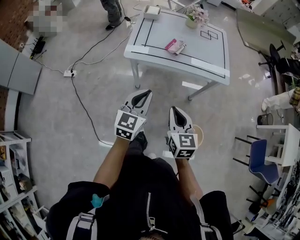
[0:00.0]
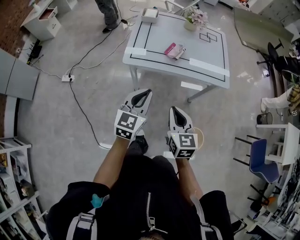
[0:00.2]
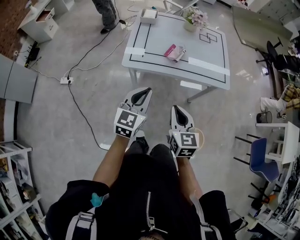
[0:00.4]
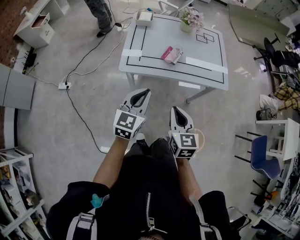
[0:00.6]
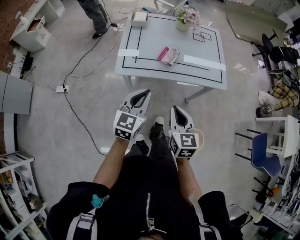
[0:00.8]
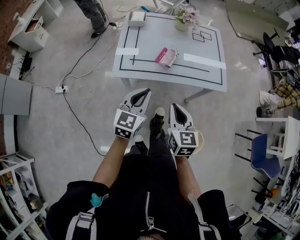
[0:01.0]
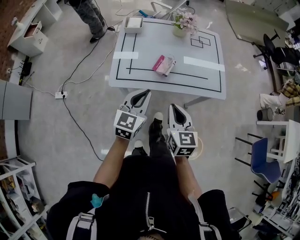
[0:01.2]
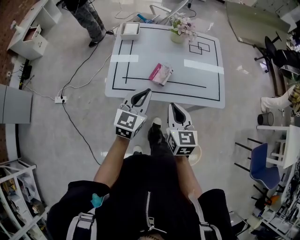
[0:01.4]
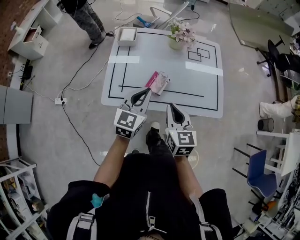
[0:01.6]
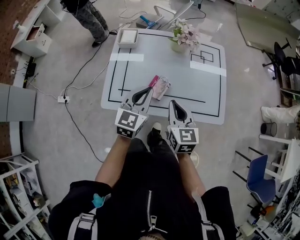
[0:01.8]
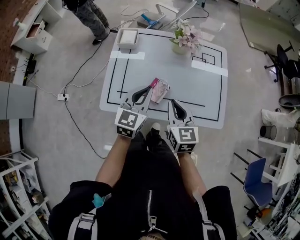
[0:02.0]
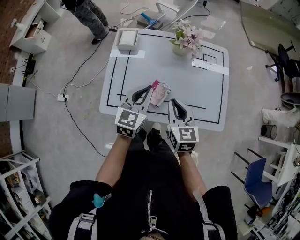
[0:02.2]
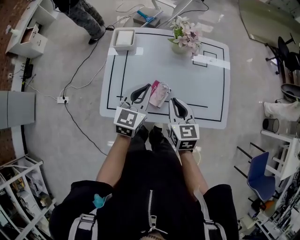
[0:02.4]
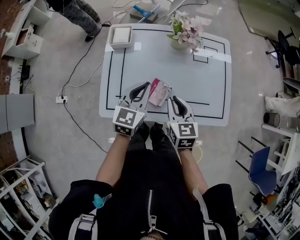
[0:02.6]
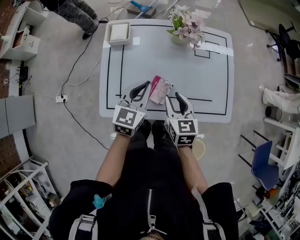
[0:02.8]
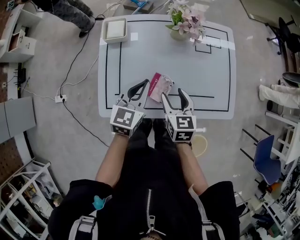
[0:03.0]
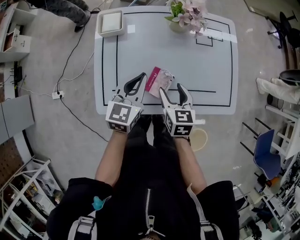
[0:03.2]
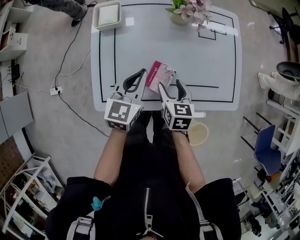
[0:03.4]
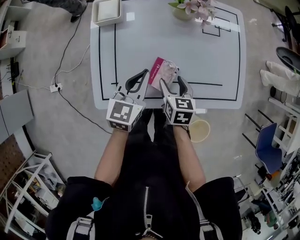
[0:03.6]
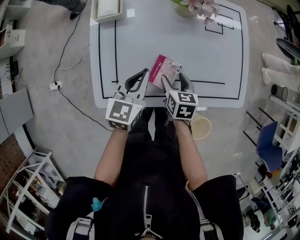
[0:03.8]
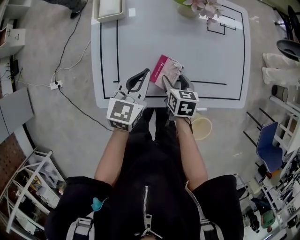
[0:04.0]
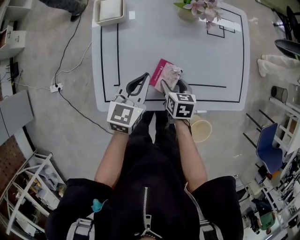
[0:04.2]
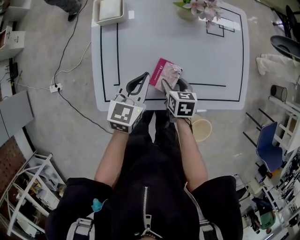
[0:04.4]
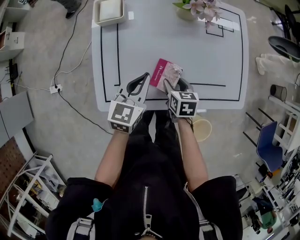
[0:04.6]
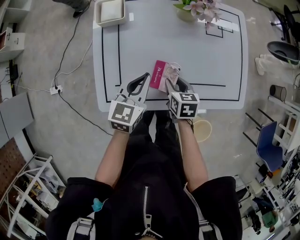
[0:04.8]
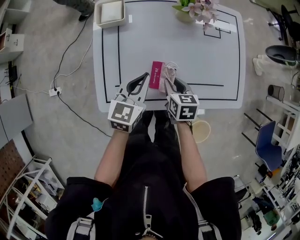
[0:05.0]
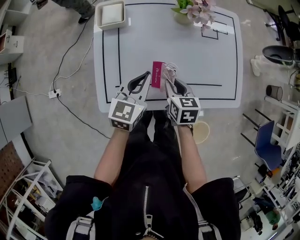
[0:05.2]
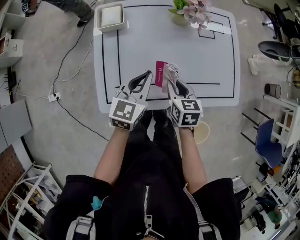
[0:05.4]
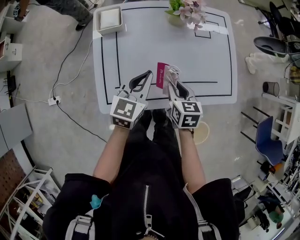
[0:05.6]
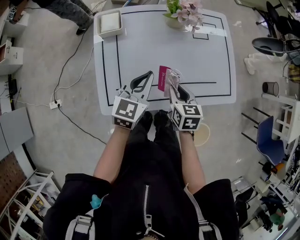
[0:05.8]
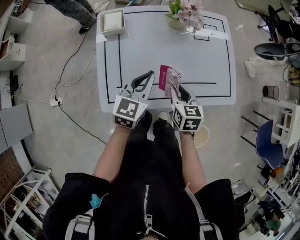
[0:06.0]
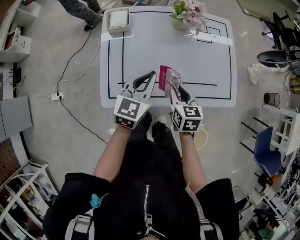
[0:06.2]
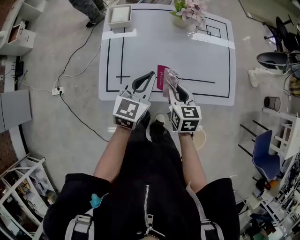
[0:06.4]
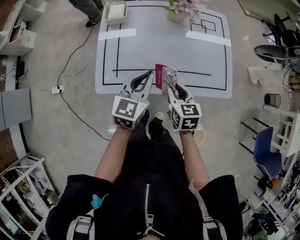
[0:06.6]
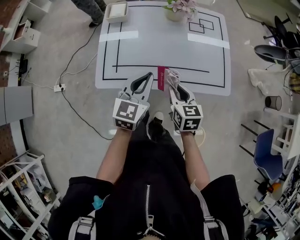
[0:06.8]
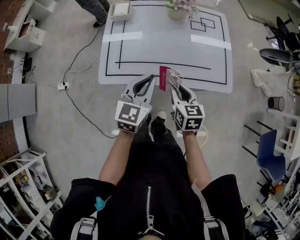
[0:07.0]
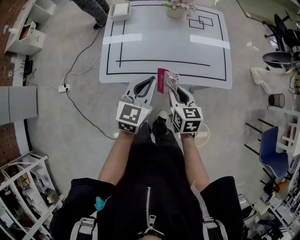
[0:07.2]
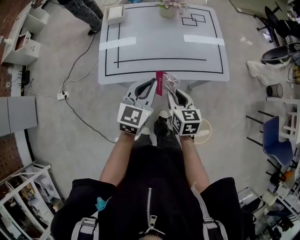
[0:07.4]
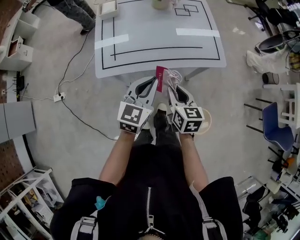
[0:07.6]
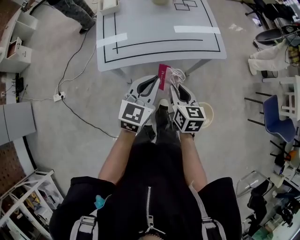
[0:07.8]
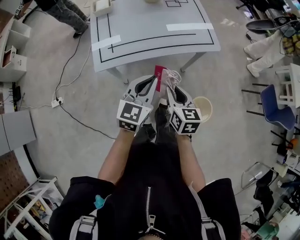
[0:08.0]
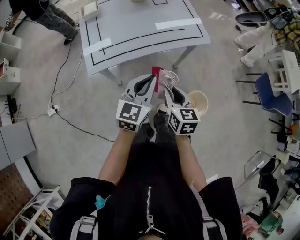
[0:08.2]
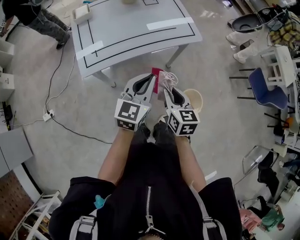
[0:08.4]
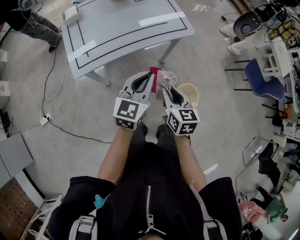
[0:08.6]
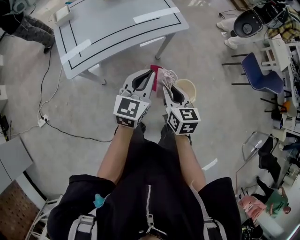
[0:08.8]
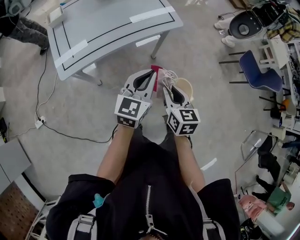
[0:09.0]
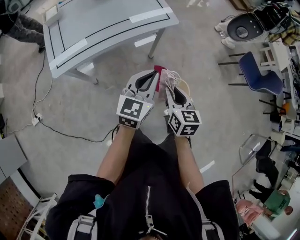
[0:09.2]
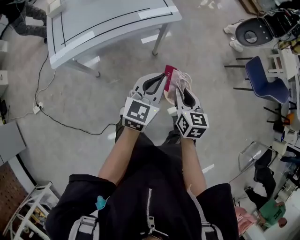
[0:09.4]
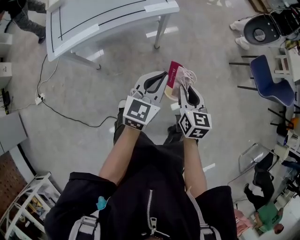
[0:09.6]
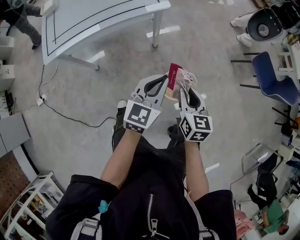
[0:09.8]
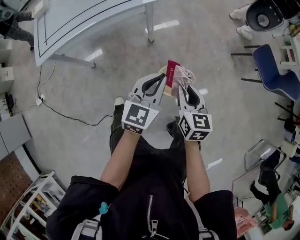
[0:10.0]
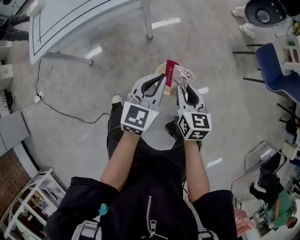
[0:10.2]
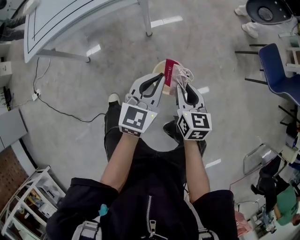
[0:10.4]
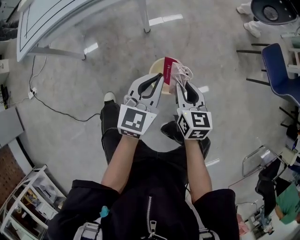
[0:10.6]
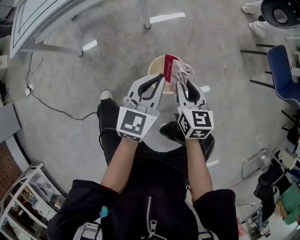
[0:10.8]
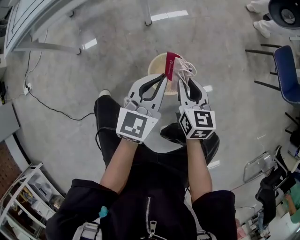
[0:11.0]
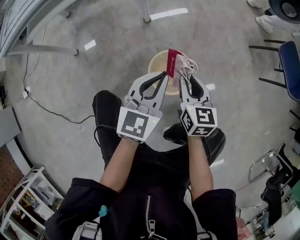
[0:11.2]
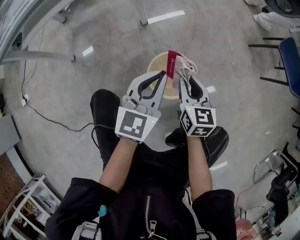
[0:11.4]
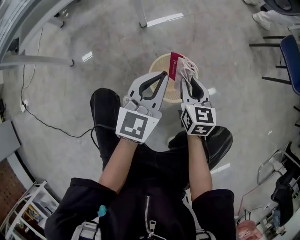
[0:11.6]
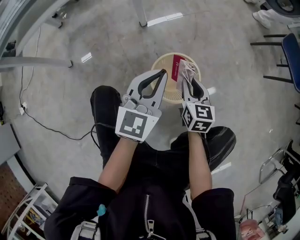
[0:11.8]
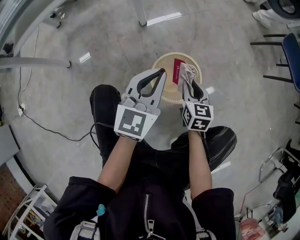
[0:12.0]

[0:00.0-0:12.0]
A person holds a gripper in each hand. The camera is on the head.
0.0 to 1.6 s: The two grippers go about 35 cm forward.
1.6 to 3.0 s: Both grippers move forward and downward, some 15 cm. The right gripper opens its fingers.
3.0 to 4.4 s: The left gripper heads downward, covering some 10 cm; the right gripper heads downward, covering about 15 cm, and rotates about 20 degrees.
4.4 to 6.0 s: The right gripper goes approximately 10 cm upward, and closes its fingers. The left gripper travels upward by roughly 5 cm.
6.0 to 7.6 s: Both grippers travel together backward, roughly 25 cm.
7.6 to 9.0 s: Both grippers travel together to the right and backward, roughly 20 cm. The left gripper rotates about 20 degrees, while the right gripper swivels roughly 20 degrees.
9.0 to 10.4 s: Both grippers travel together to the right and downward, approximately 35 cm.
10.4 to 12.0 s: Both grippers travel together downward, approximately 35 cm.

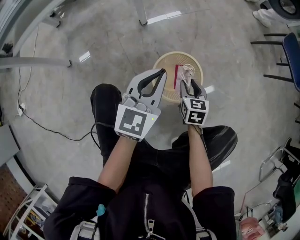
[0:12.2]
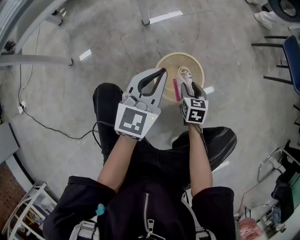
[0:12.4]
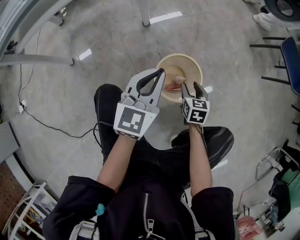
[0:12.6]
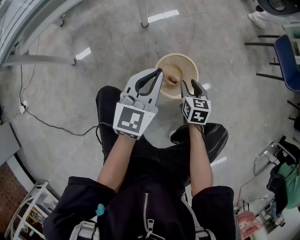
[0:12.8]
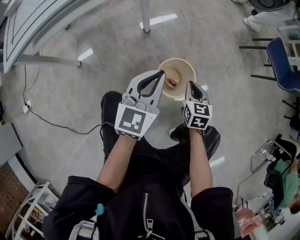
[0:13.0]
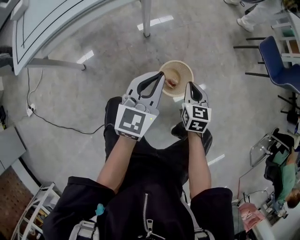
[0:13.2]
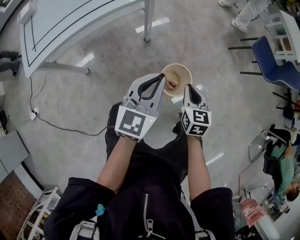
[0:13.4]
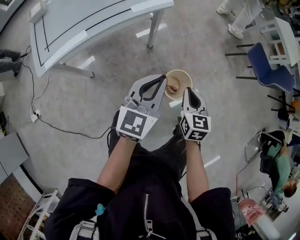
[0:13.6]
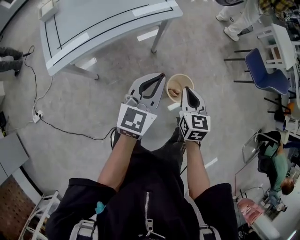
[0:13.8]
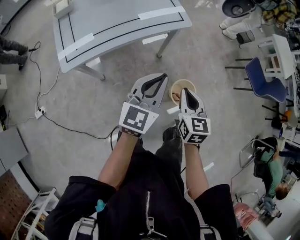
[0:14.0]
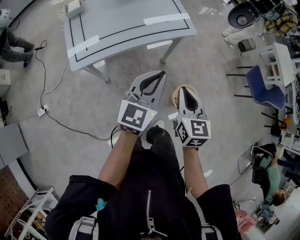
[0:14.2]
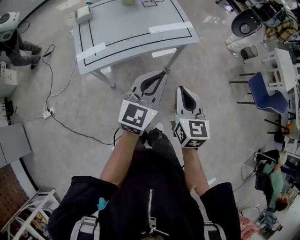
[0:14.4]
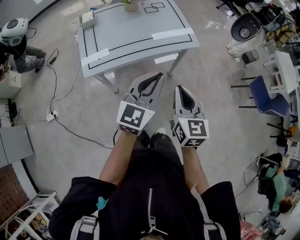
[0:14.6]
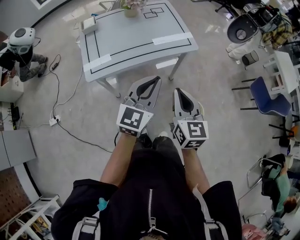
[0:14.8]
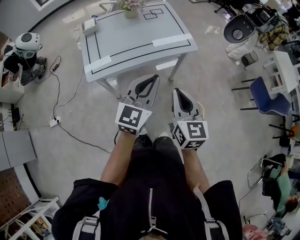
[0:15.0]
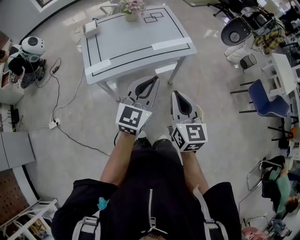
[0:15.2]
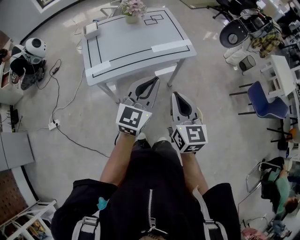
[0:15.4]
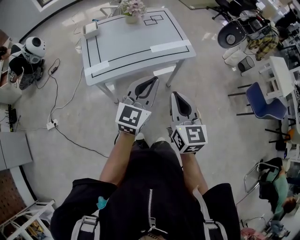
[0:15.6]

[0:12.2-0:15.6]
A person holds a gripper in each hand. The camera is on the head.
12.2 to 13.8 s: The two grippers go roughly 50 cm upward and to the left. The right gripper closes.
13.8 to 15.6 s: The left gripper goes about 20 cm to the left and upward; the right gripper heads upward and to the left, covering about 30 cm, and swivels about 30 degrees.

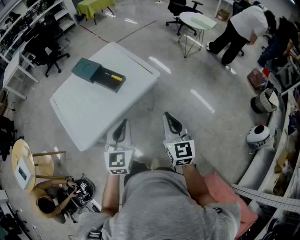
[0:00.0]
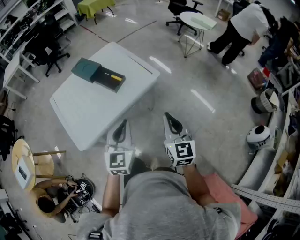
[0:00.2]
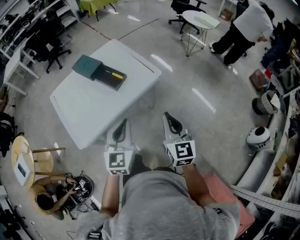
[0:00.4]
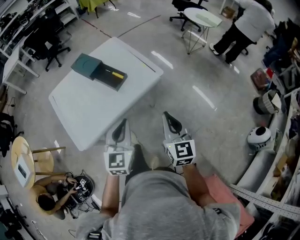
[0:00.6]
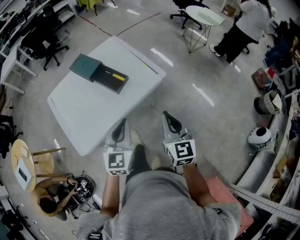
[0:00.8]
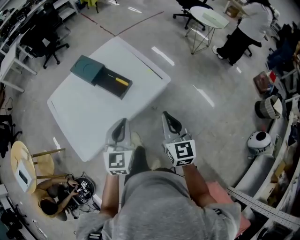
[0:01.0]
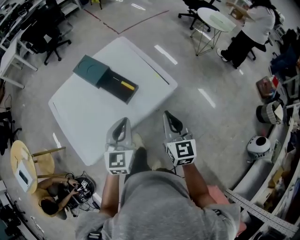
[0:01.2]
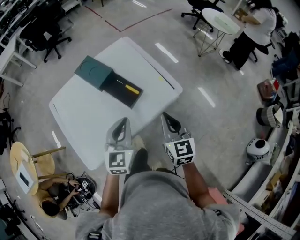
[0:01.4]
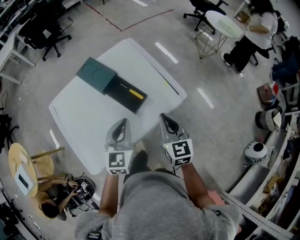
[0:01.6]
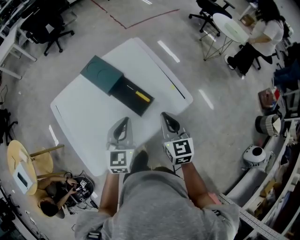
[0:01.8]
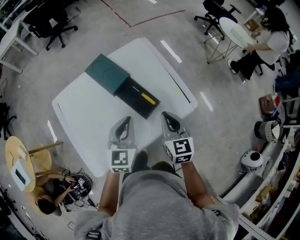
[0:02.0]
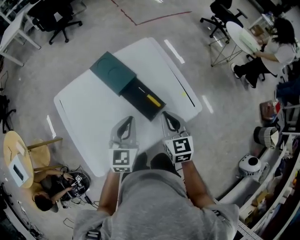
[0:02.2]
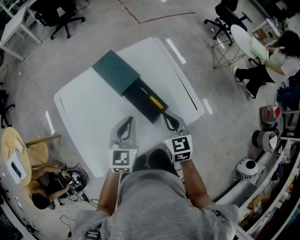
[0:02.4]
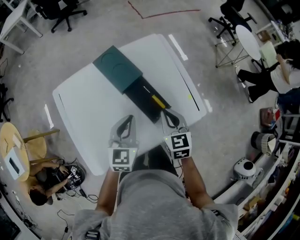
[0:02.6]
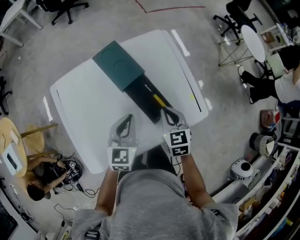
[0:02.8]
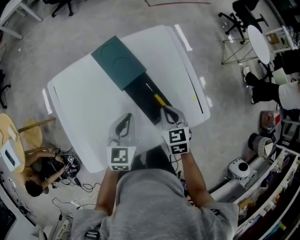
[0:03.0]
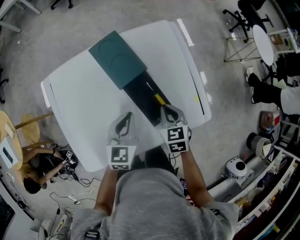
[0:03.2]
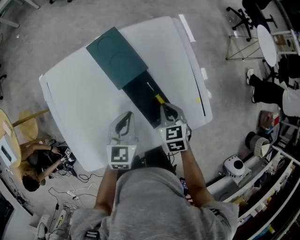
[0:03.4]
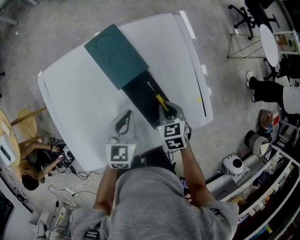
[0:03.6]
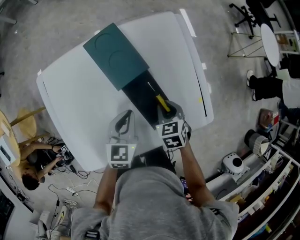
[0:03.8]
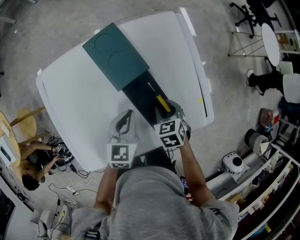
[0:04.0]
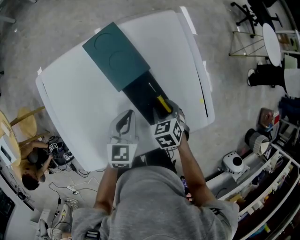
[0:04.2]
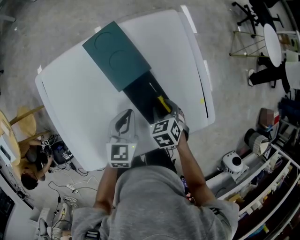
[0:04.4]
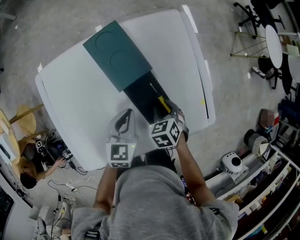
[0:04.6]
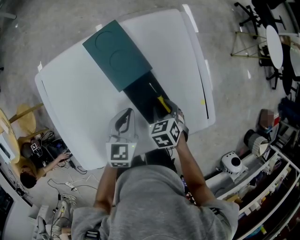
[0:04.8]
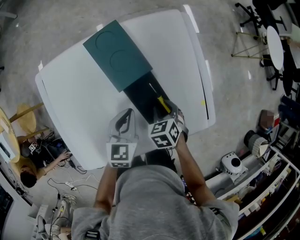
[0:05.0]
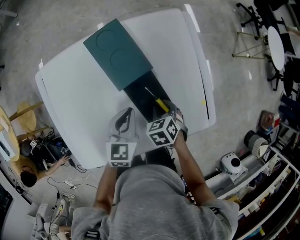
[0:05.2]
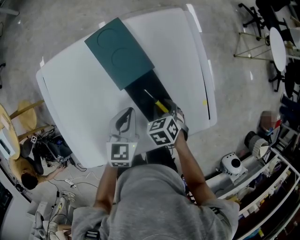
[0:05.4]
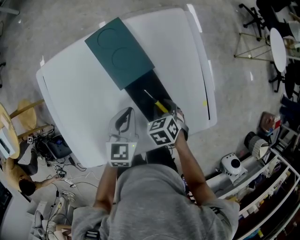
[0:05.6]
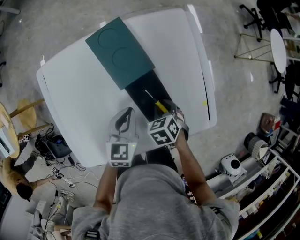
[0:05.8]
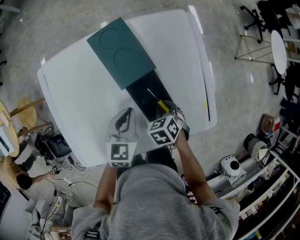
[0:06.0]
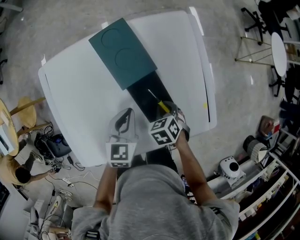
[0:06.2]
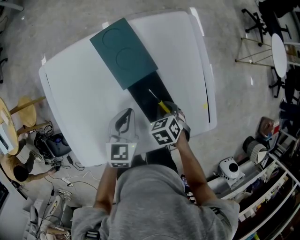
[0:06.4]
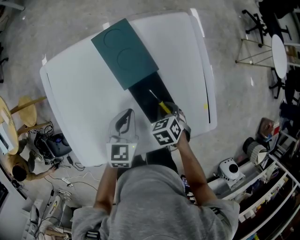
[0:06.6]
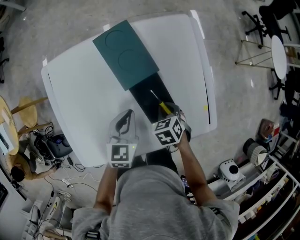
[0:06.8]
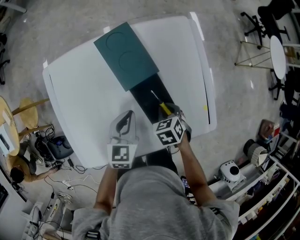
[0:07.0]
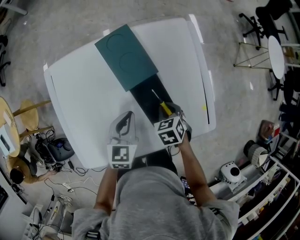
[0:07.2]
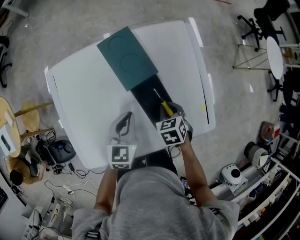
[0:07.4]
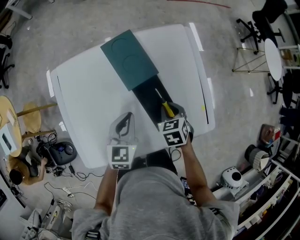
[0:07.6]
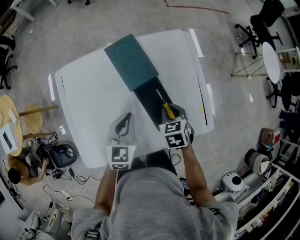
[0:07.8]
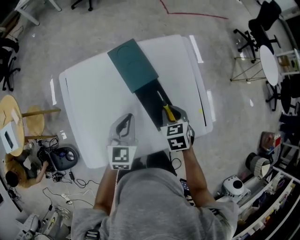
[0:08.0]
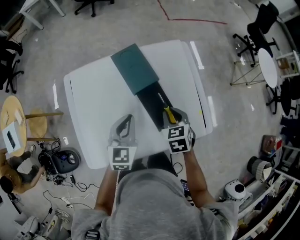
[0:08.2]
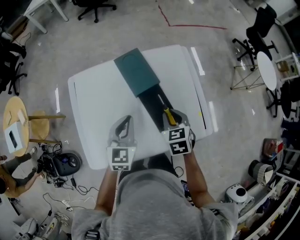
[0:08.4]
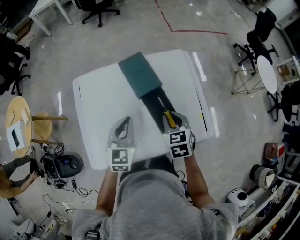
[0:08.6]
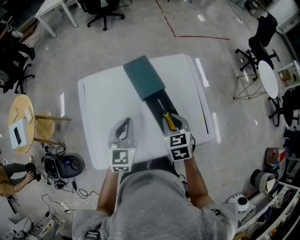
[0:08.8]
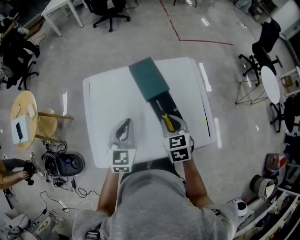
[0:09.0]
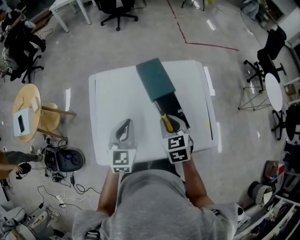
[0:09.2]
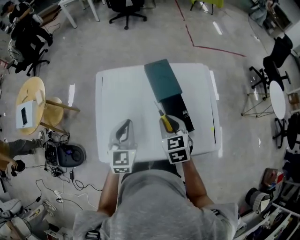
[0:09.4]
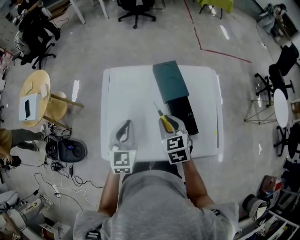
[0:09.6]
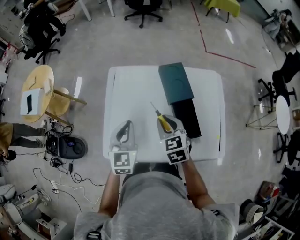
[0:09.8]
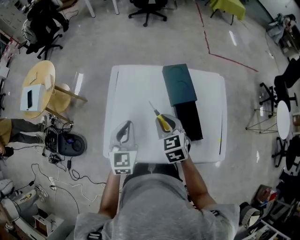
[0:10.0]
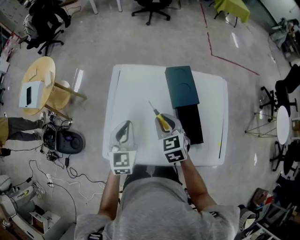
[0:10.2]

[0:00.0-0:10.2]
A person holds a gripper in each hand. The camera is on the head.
0.0 to 1.4 s: Both grippers travel together forward and to the left, approximately 25 cm.
1.4 to 3.0 s: The right gripper goes about 25 cm forward, downward and to the left, and rotates approximately 30 degrees, while the left gripper moves forward, to the left and downward, some 20 cm.
3.0 to 4.4 s: The grippers both shift downward by about 10 cm. The right gripper changes its angle by about 30 degrees, and opens.
4.4 to 7.2 s: The grippers stay close to where they were, moving slightly.
7.2 to 8.8 s: The left gripper is displaced upward and to the left by some 15 cm. Meanwhile the right gripper heads upward, covering approximately 20 cm, and rotates approximately 30 degrees.
8.8 to 10.2 s: Both grippers move to the left, approximately 15 cm. The right gripper turns by roughly 30 degrees. The left gripper changes its angle by roughly 20 degrees.
